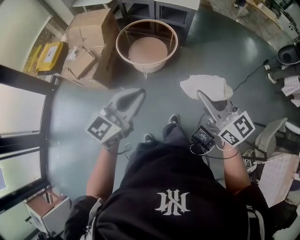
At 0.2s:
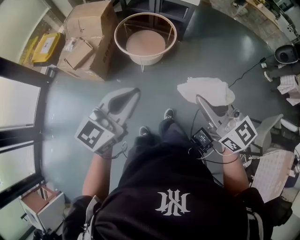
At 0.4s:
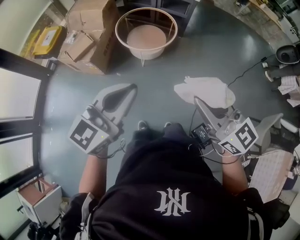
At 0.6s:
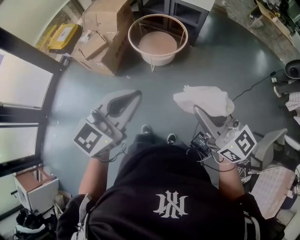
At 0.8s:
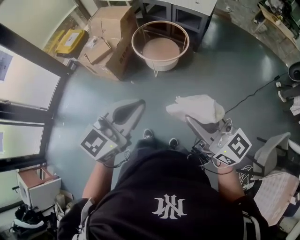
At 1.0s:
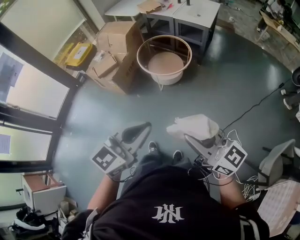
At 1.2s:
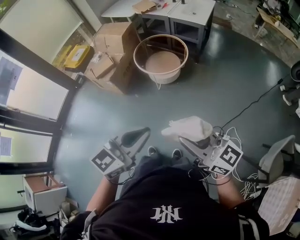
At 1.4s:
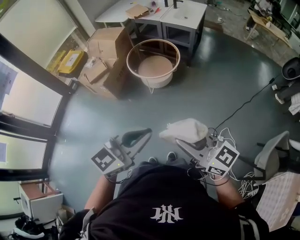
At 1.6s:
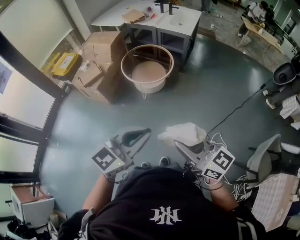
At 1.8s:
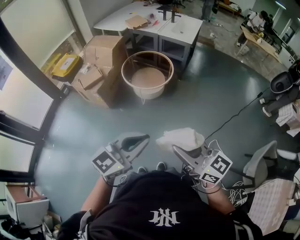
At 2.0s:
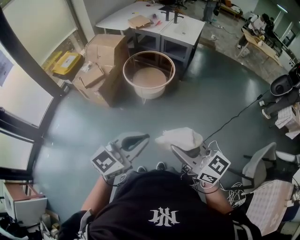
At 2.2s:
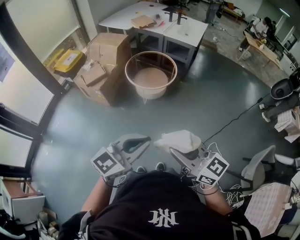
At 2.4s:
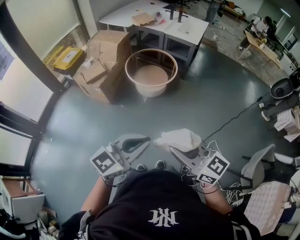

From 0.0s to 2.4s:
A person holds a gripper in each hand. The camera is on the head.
From 0.0s to 1.2s: The left gripper is displaced backward and to the right by approximately 25 cm; the right gripper moves backward, some 20 cm, and turns by about 30 degrees.
From 1.2s to 2.4s: The left gripper shifts by about 5 cm. The right gripper shifts some 5 cm to the left.

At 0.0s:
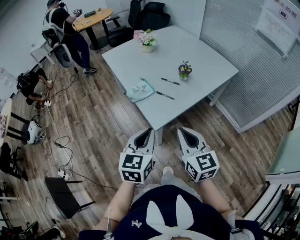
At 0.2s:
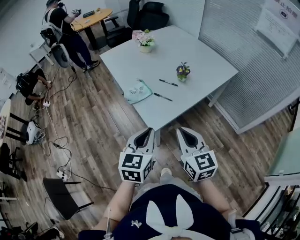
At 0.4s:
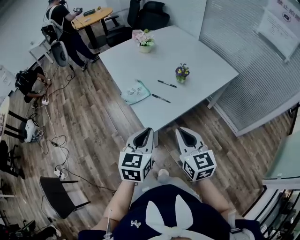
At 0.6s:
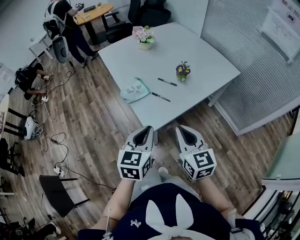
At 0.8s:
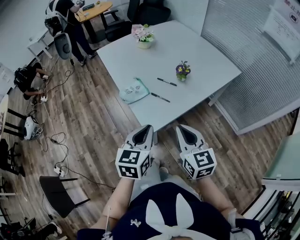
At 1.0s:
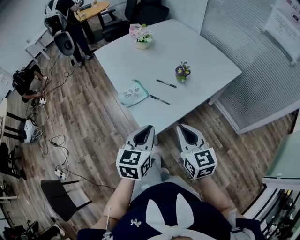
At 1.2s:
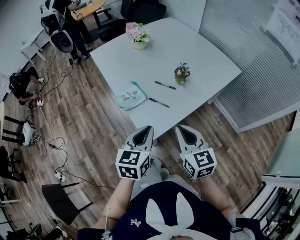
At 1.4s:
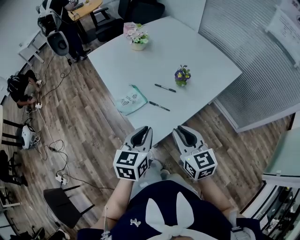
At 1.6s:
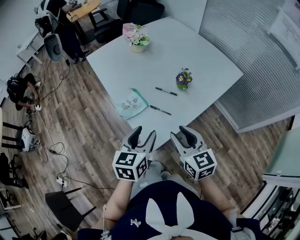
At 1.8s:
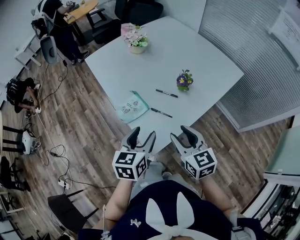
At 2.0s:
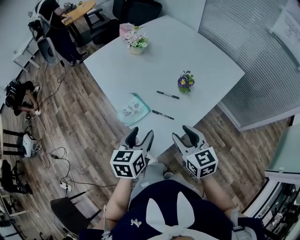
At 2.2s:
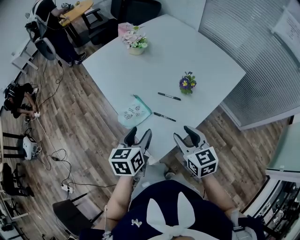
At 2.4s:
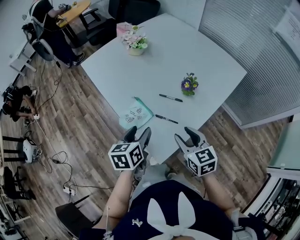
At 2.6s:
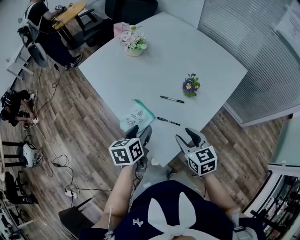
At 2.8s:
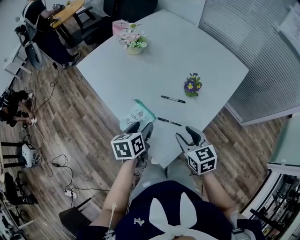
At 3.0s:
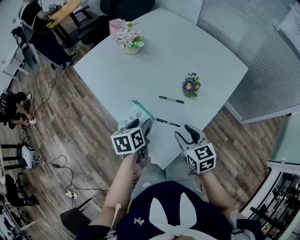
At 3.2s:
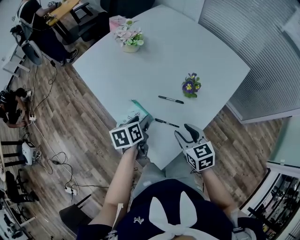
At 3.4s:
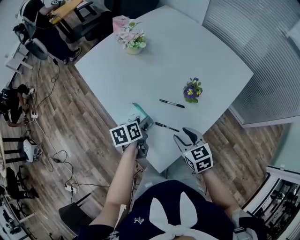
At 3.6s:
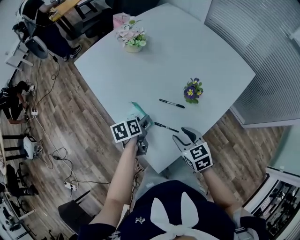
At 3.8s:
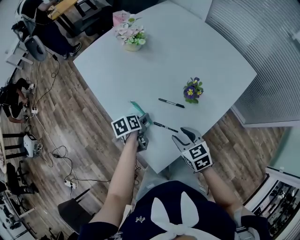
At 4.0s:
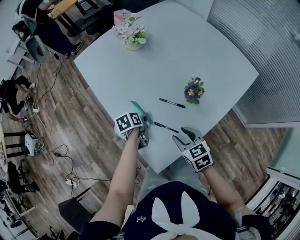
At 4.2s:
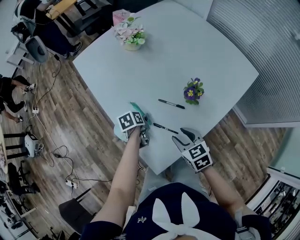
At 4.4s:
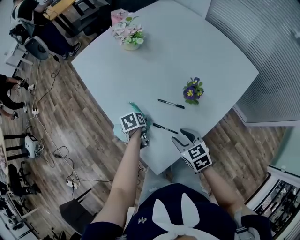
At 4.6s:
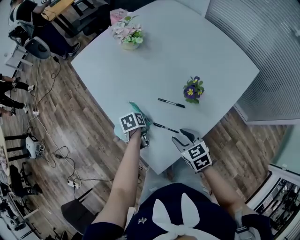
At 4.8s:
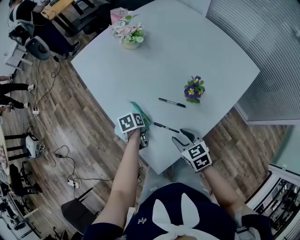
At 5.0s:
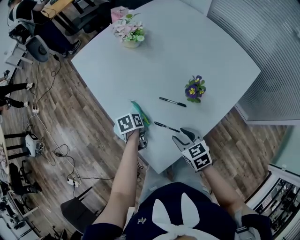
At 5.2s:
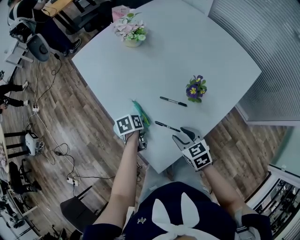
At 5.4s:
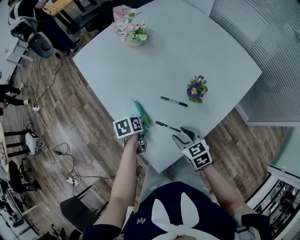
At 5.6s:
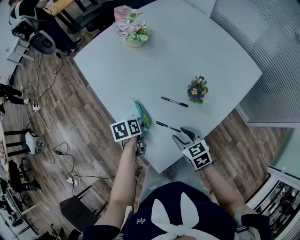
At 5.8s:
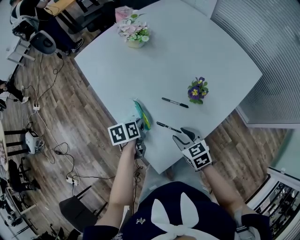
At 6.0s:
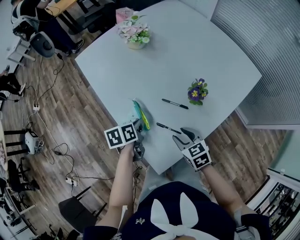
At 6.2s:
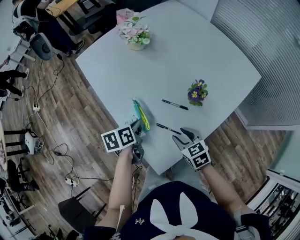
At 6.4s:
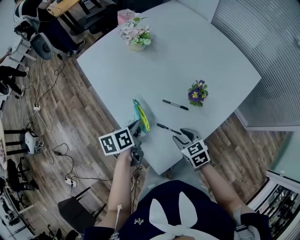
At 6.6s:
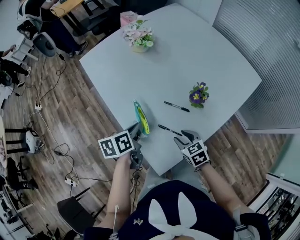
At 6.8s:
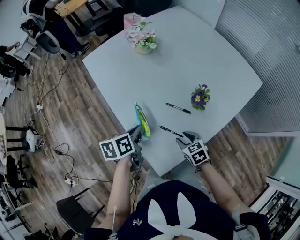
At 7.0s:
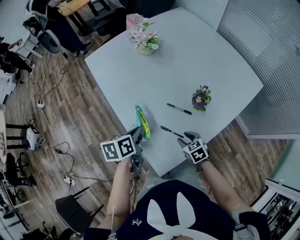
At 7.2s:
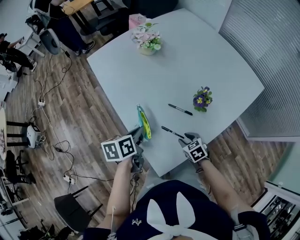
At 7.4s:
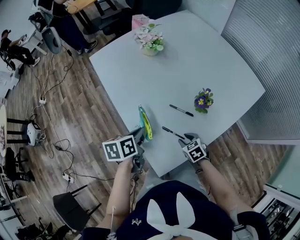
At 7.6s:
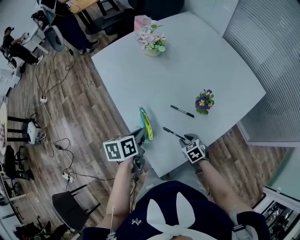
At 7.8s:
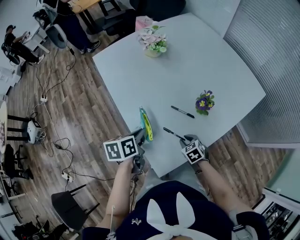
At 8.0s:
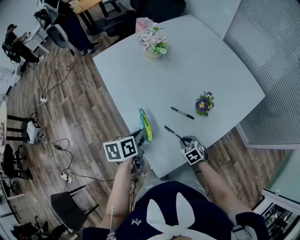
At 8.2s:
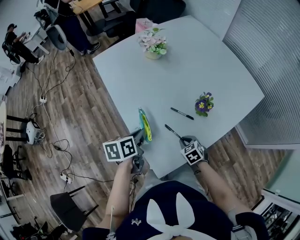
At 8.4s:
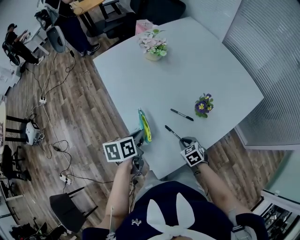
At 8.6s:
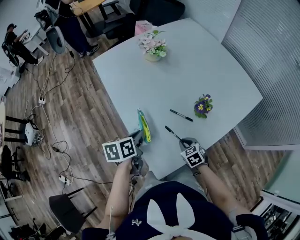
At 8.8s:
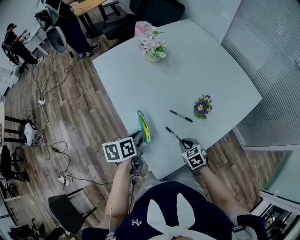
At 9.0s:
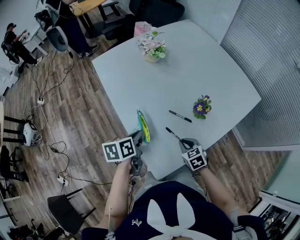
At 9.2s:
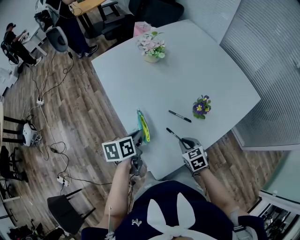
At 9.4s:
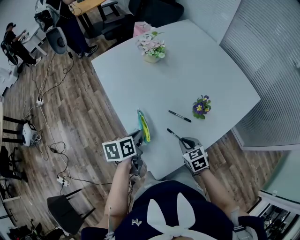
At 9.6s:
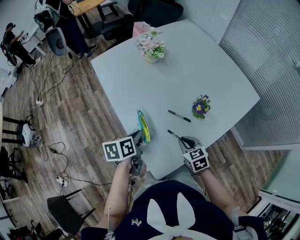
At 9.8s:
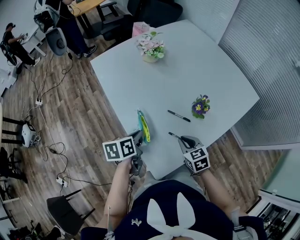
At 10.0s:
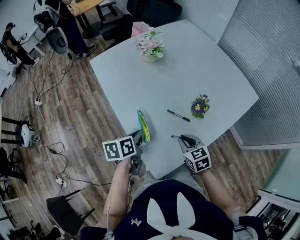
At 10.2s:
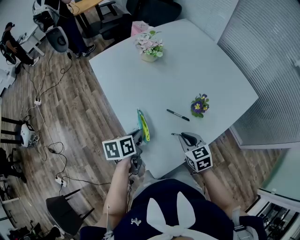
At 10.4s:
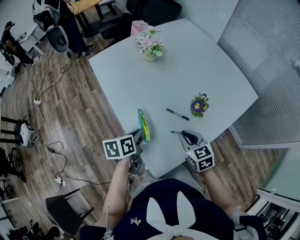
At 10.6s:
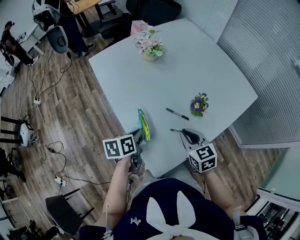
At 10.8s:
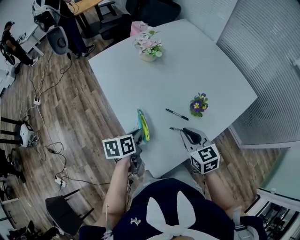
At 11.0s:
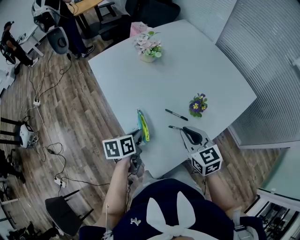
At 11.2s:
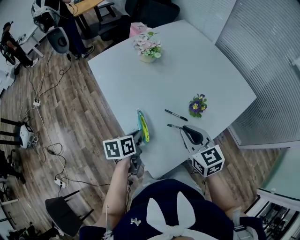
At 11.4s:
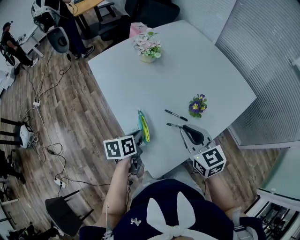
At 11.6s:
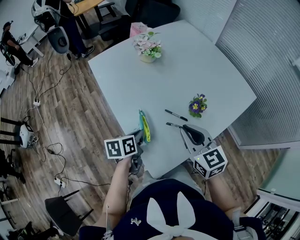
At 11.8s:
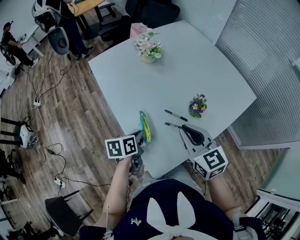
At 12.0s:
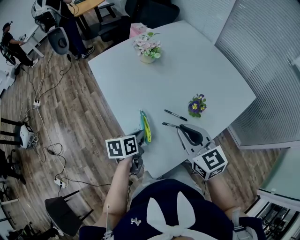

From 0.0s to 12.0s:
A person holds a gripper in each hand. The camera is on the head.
From 0.0s to 1.6s: The grippers both shift forward by about 15 cm. The right gripper opens its fingers; the left gripper opens.
From 1.6s to 3.0s: The two grippers go roughly 20 cm forward and downward. The left gripper rotates roughly 20 degrees.
From 3.0s to 4.4s: The left gripper heads downward, covering some 15 cm, and rotates about 30 degrees, while the right gripper shifts some 5 cm downward.
From 4.4s to 6.0s: The left gripper shifts roughly 10 cm upward, and closes up.
From 6.0s to 7.6s: The left gripper is displaced upward by about 5 cm; the right gripper goes roughly 10 cm downward.
From 7.6s to 9.0s: The right gripper is displaced upward by some 5 cm, and closes up.
From 9.0s to 10.4s: The right gripper heads upward, covering roughly 10 cm.
From 10.4s to 12.0s: The right gripper is displaced upward by some 15 cm.

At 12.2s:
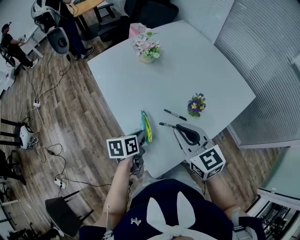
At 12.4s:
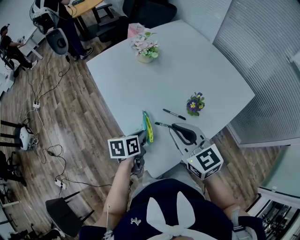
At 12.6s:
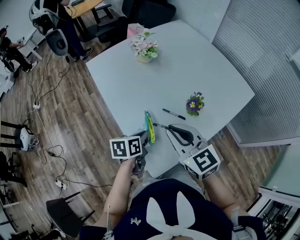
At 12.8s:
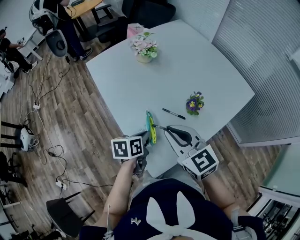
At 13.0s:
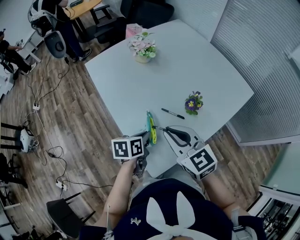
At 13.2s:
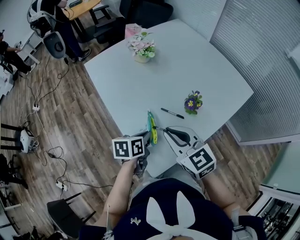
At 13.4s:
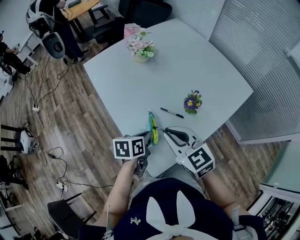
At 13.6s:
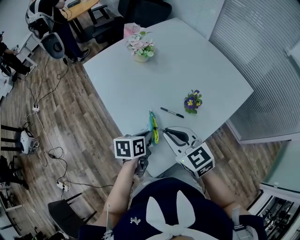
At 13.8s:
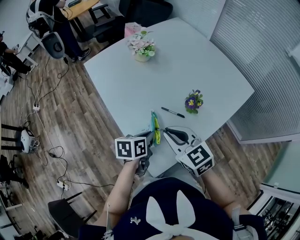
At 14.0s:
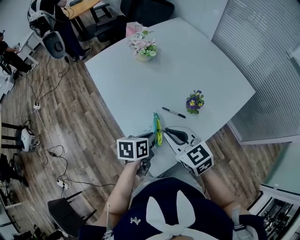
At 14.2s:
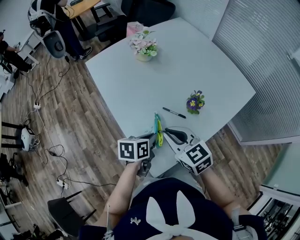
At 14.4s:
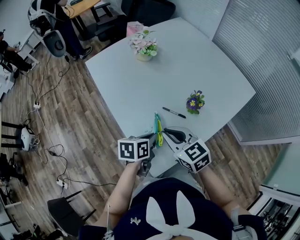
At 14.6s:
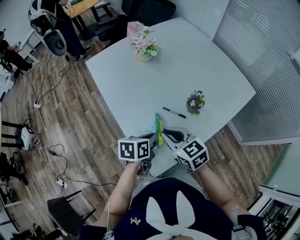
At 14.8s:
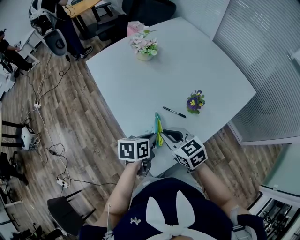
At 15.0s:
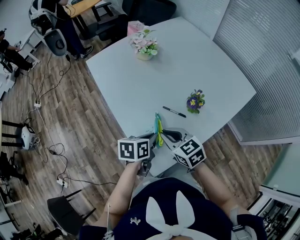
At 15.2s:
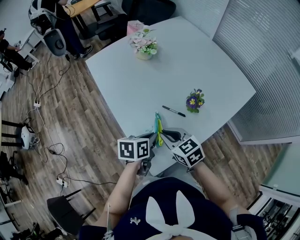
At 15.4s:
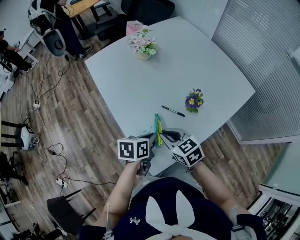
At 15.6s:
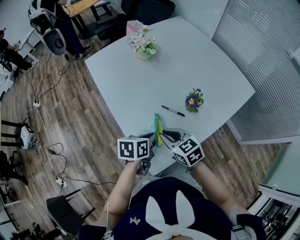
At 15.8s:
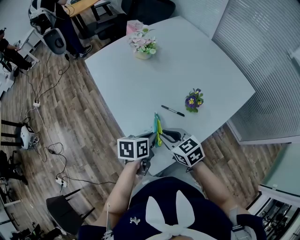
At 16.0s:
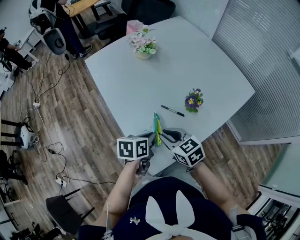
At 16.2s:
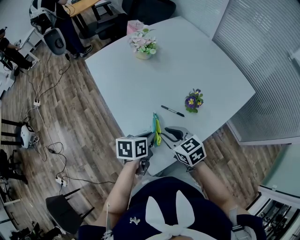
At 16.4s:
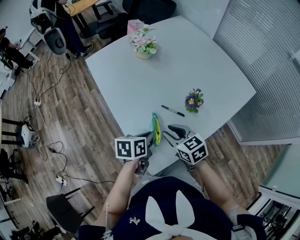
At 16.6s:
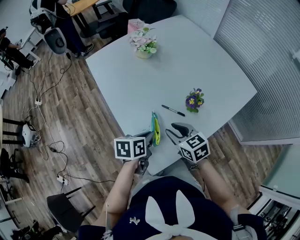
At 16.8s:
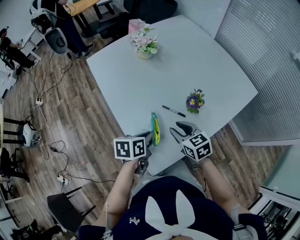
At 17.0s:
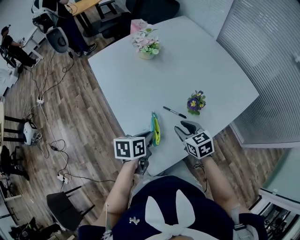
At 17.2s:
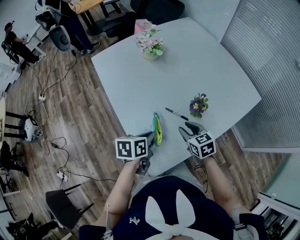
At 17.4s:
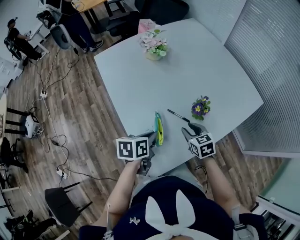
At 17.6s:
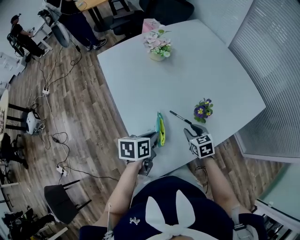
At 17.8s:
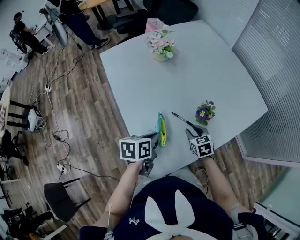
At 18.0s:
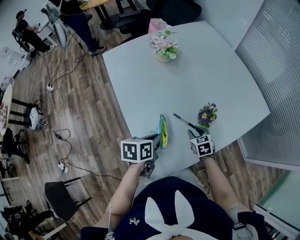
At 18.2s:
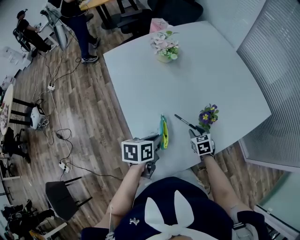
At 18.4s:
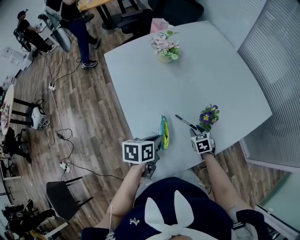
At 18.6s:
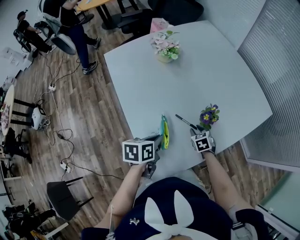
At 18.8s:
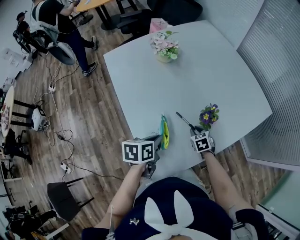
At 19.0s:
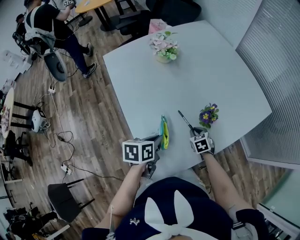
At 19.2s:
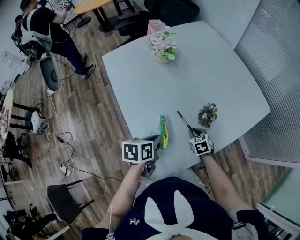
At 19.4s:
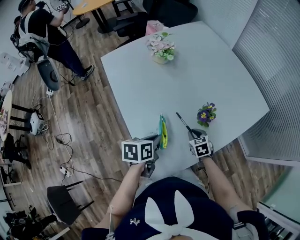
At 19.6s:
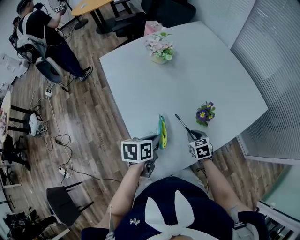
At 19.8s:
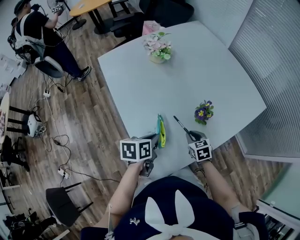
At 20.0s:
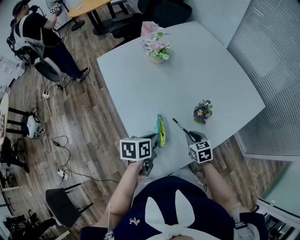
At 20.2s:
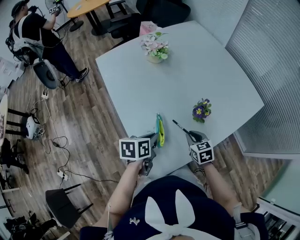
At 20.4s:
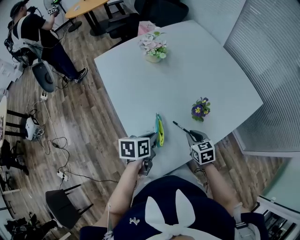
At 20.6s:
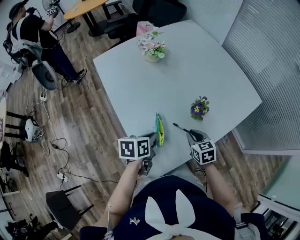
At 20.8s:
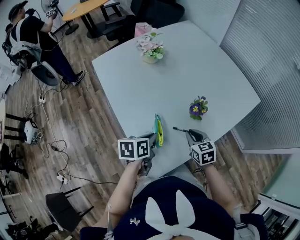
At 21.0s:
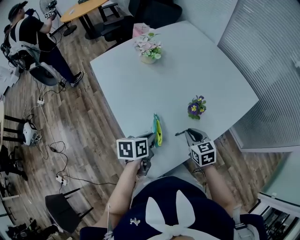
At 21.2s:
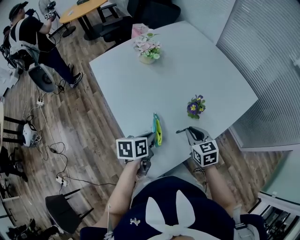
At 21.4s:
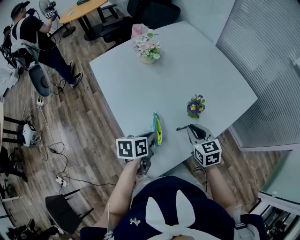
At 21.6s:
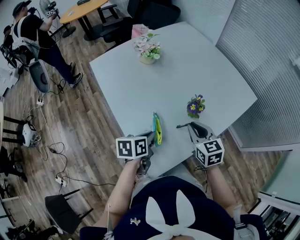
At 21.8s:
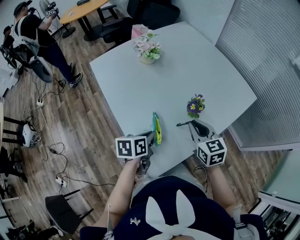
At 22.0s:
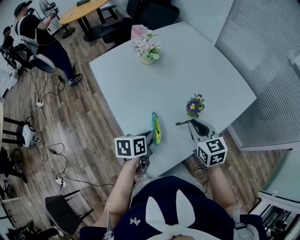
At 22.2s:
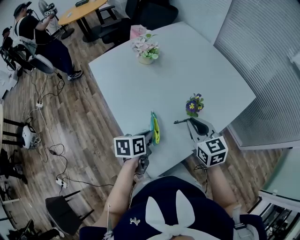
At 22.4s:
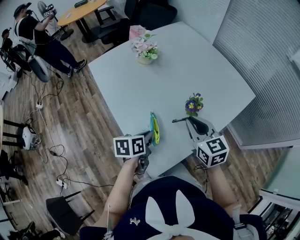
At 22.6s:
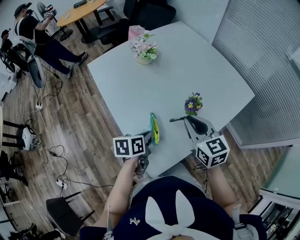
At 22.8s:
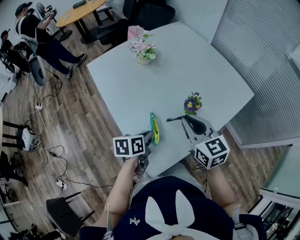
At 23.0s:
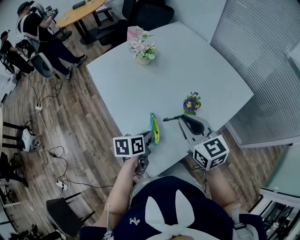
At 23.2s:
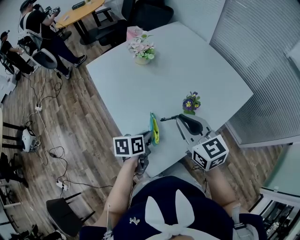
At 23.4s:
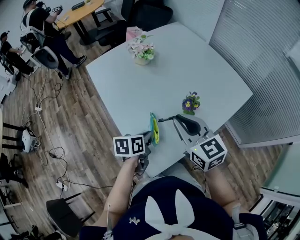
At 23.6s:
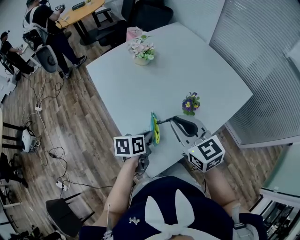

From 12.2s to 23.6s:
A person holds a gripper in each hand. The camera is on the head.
From 12.2s to 13.6s: The grippers make only small movements.
From 13.6s to 15.0s: The right gripper shifts about 10 cm downward.
From 15.0s to 16.4s: The right gripper opens.
From 16.4s to 17.8s: The right gripper goes approximately 15 cm downward, to the right and forward.
From 19.4s to 20.8s: The right gripper moves upward, about 10 cm.
From 20.8s to 22.2s: The right gripper travels upward by approximately 15 cm.
From 22.2s to 23.6s: The right gripper moves upward and to the left, some 10 cm.
